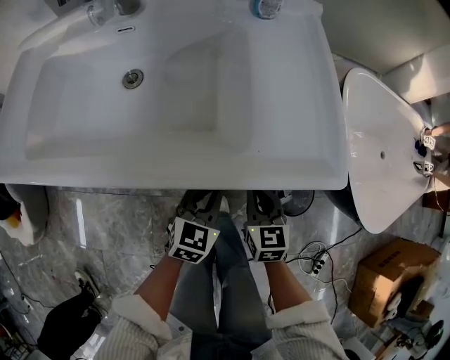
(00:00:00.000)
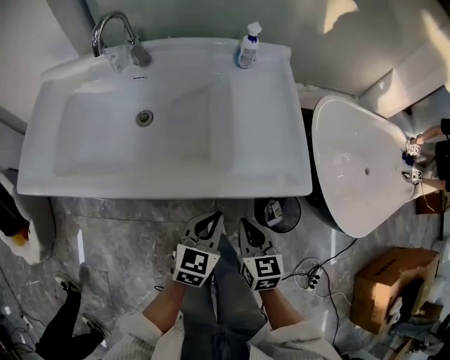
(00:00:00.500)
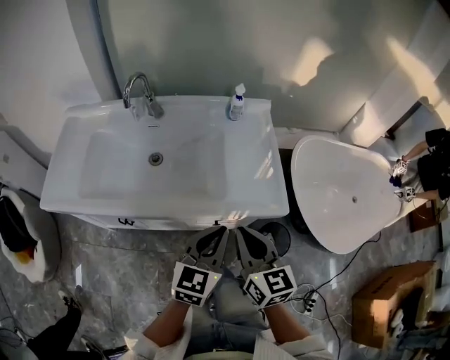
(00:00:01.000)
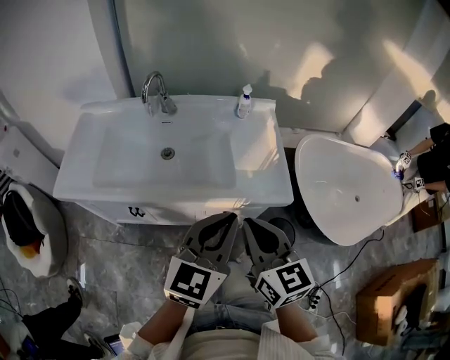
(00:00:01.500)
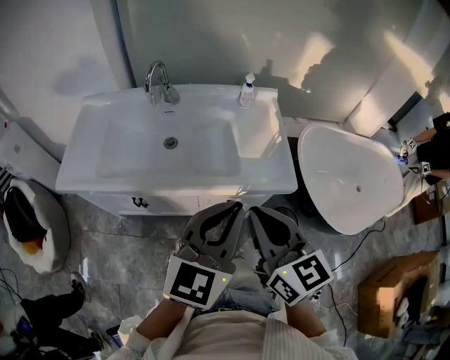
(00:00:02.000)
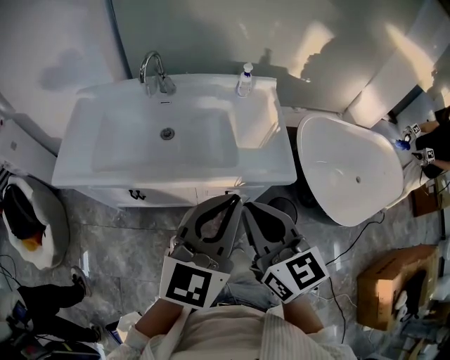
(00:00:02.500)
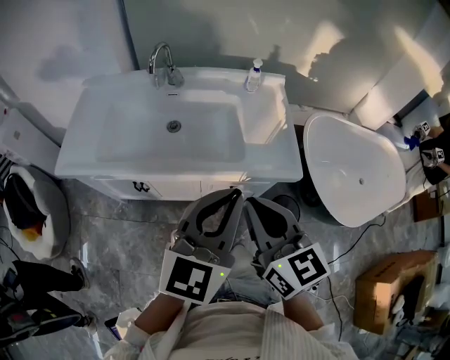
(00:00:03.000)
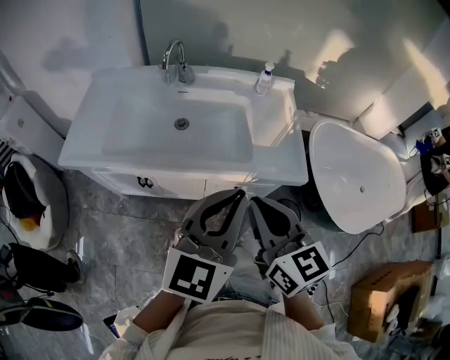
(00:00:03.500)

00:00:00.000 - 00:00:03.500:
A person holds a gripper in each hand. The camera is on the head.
00:00:00.000 - 00:00:02.000: The two grippers go about 40 cm upward. The right gripper turns by roughly 30 degrees. The left gripper turns by about 30 degrees.
00:00:02.000 - 00:00:03.500: The grippers make only small movements.

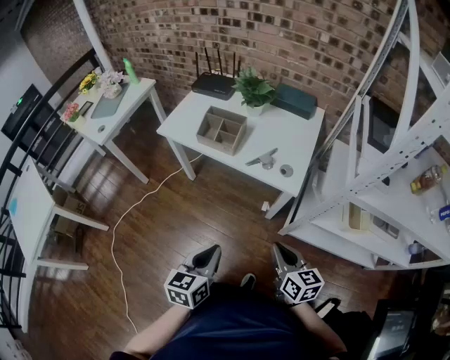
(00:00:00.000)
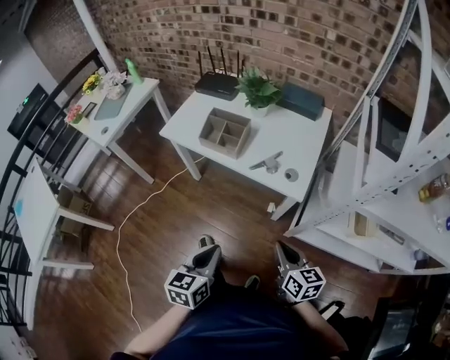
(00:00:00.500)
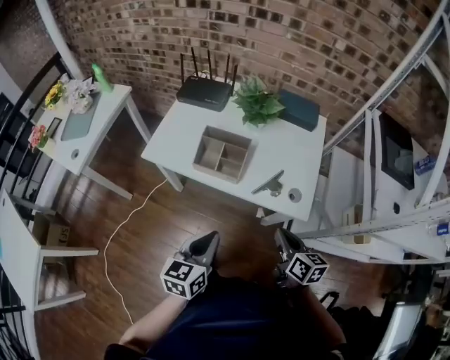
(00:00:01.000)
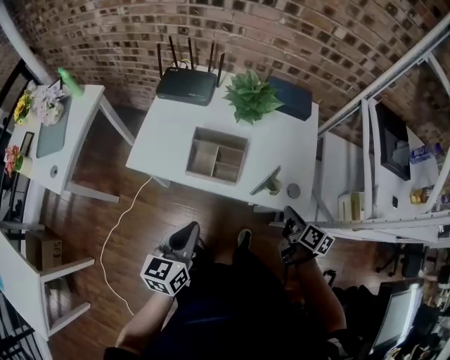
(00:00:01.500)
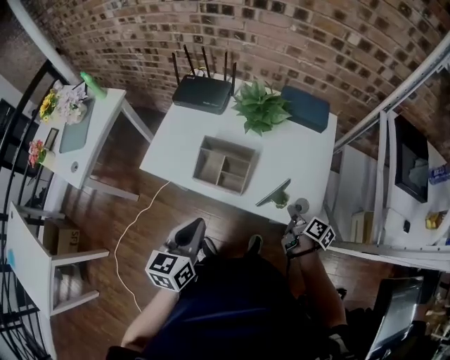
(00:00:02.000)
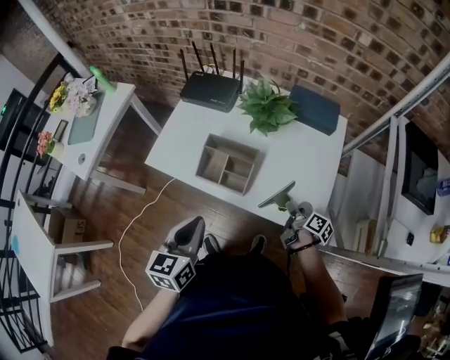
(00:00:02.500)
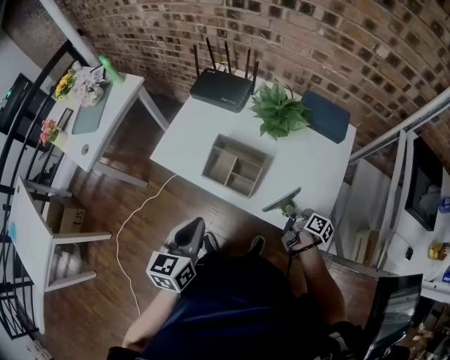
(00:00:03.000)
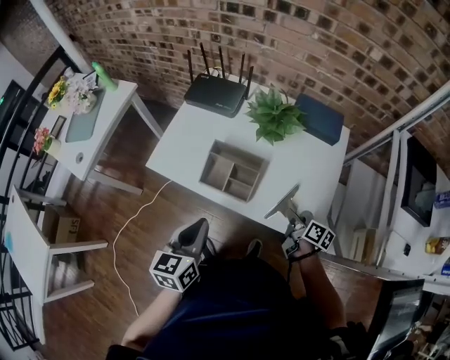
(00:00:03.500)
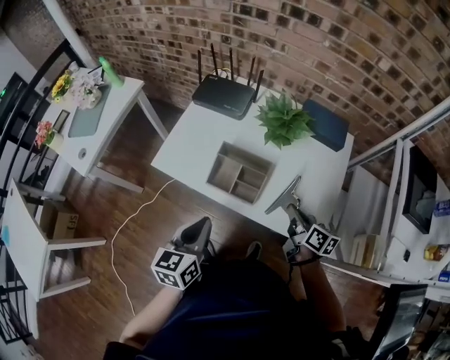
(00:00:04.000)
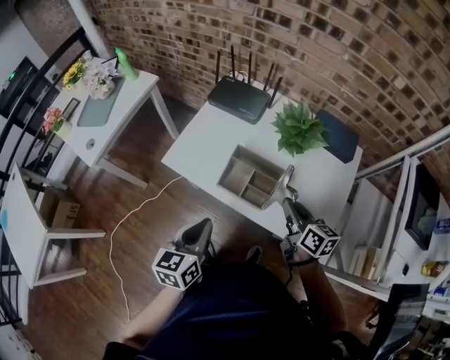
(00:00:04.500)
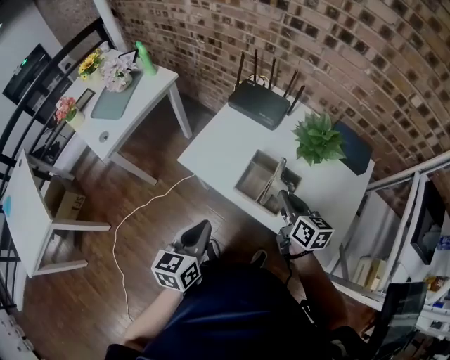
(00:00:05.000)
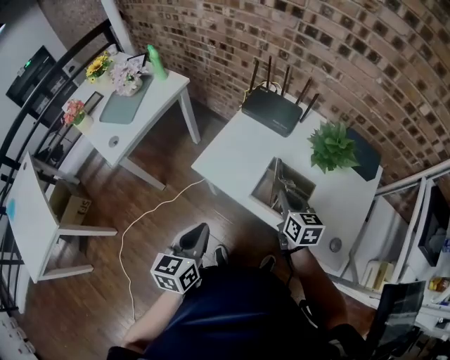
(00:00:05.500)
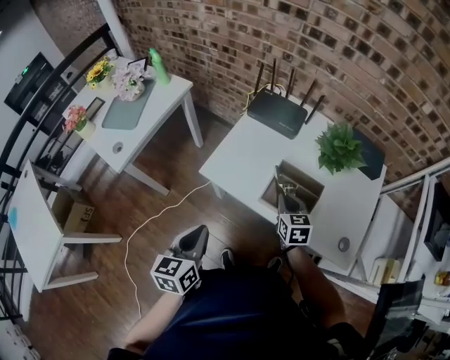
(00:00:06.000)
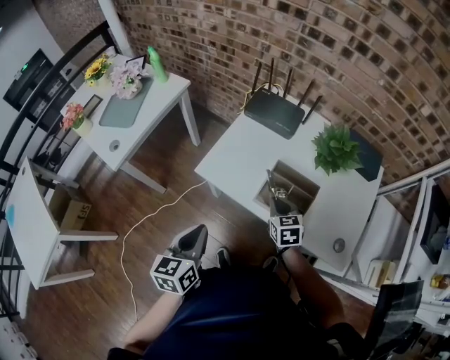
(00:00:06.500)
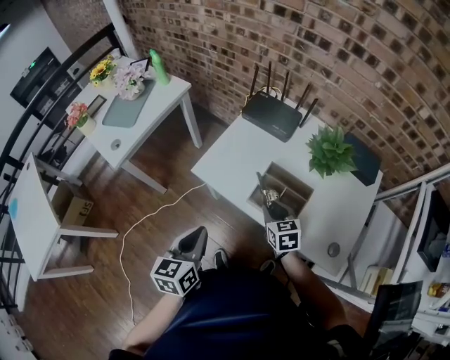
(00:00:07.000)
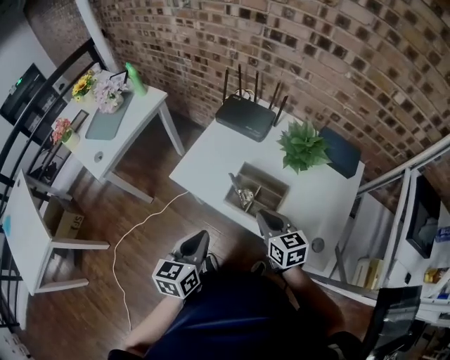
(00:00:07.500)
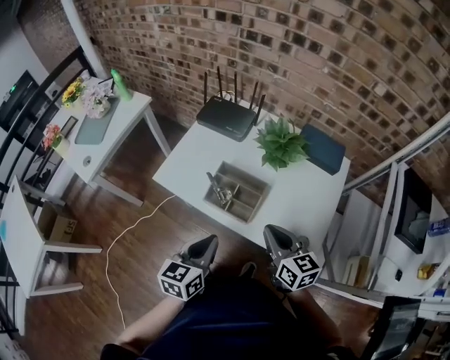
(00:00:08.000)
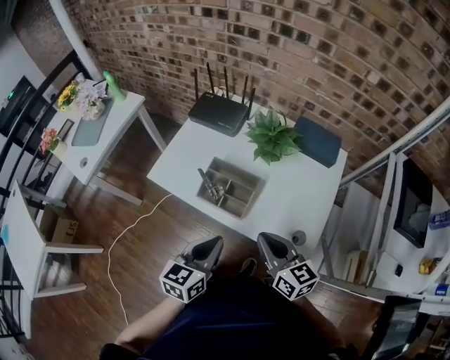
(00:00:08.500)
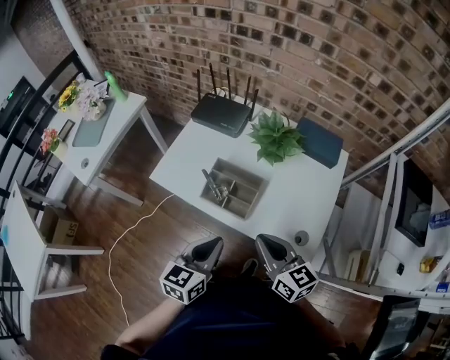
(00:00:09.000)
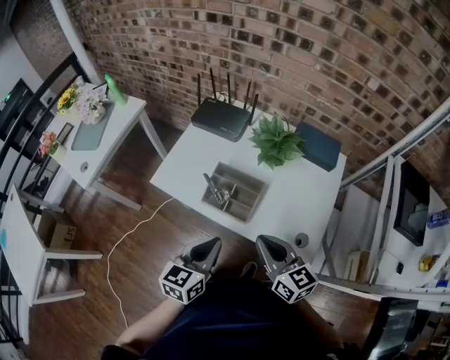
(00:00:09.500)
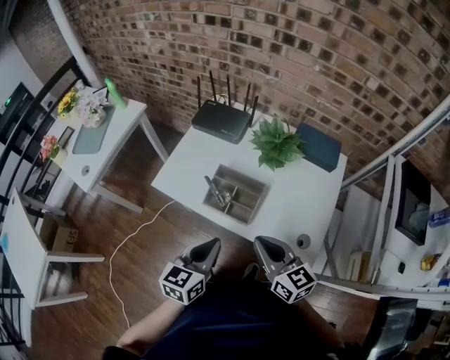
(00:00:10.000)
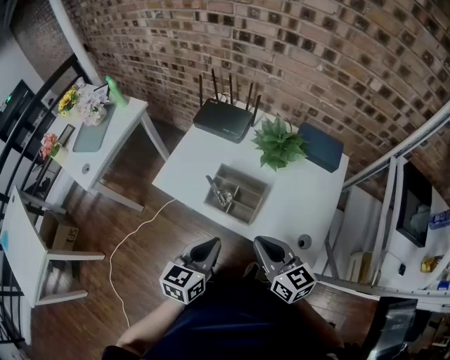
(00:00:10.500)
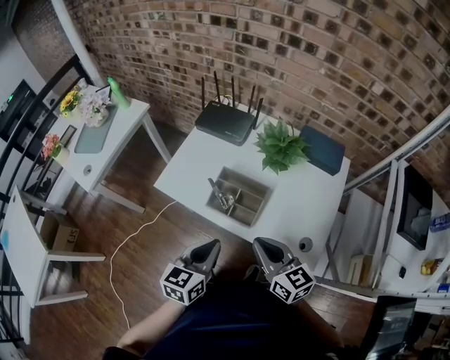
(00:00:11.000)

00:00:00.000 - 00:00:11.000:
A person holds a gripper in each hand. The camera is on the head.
00:00:00.000 - 00:00:02.000: The right gripper goes some 35 cm forward and downward, and rolls clockwise, seen from behind, by about 40 degrees, while the left gripper travels forward and to the left by approximately 35 cm.
00:00:02.000 - 00:00:03.500: The right gripper shifts by roughly 5 cm.
00:00:03.500 - 00:00:05.500: The left gripper goes roughly 15 cm to the left; the right gripper travels to the left, forward and upward by about 30 cm, and twists roughly 50 degrees counterclockwise, seen from behind.
00:00:05.500 - 00:00:07.500: The right gripper heads backward, covering roughly 5 cm, moves some 5 cm downward and comes back, and opens, then closes once more. Meanwhile the left gripper moves to the right, about 10 cm.
00:00:07.500 - 00:00:09.000: The right gripper heads backward, upward and to the right, covering some 15 cm, while the left gripper moves to the right, some 15 cm.
00:00:09.000 - 00:00:11.000: The grippers move only a little.

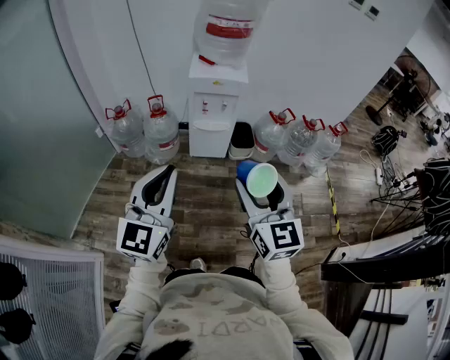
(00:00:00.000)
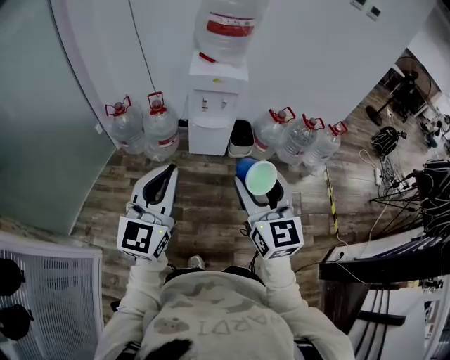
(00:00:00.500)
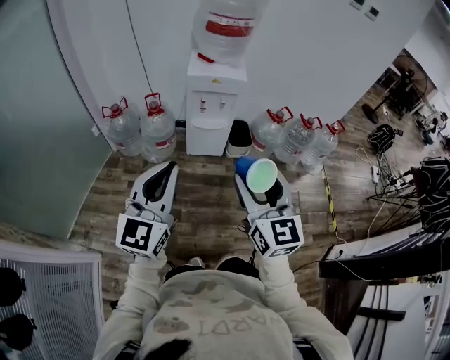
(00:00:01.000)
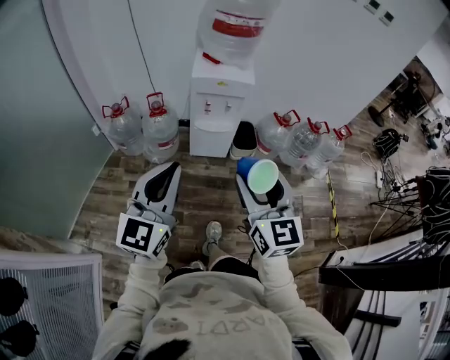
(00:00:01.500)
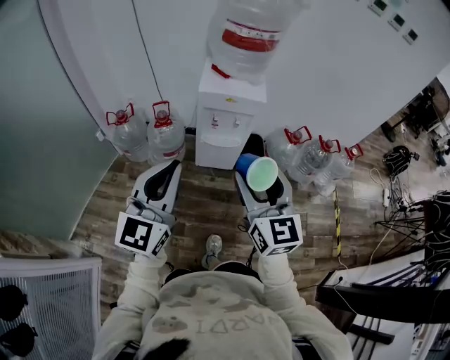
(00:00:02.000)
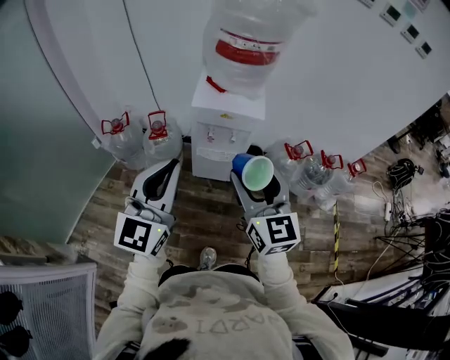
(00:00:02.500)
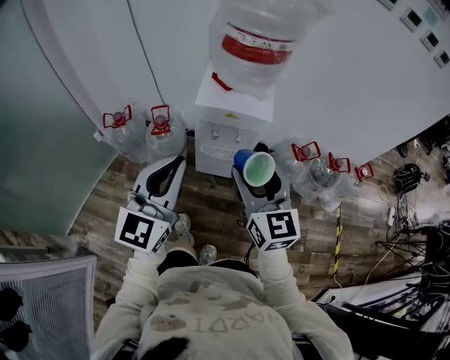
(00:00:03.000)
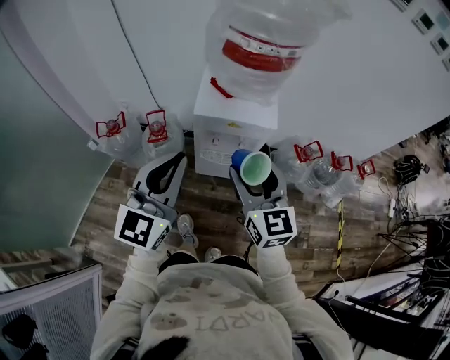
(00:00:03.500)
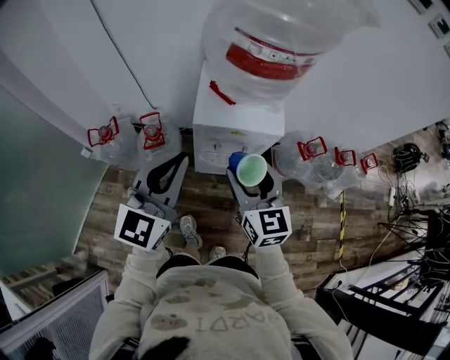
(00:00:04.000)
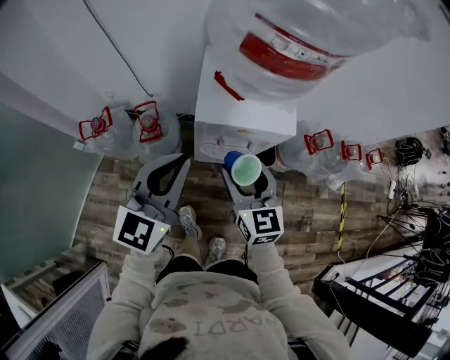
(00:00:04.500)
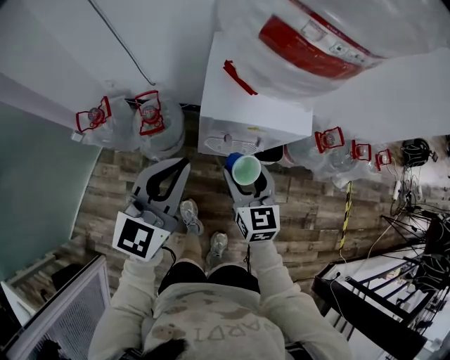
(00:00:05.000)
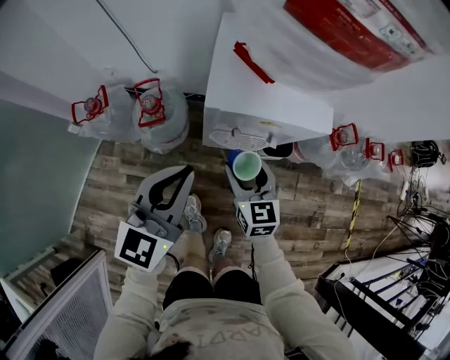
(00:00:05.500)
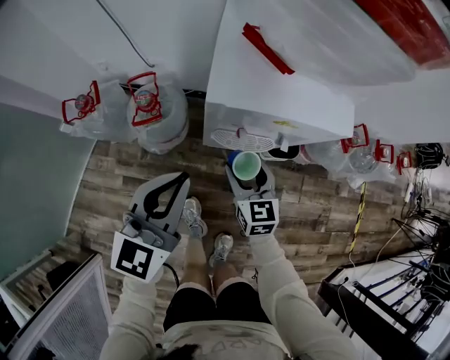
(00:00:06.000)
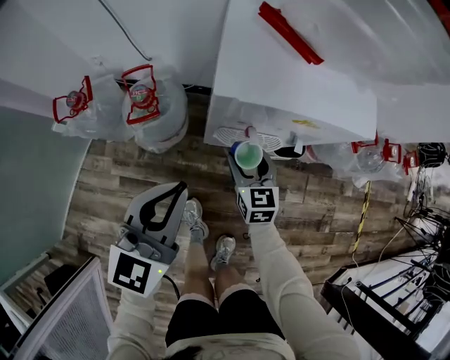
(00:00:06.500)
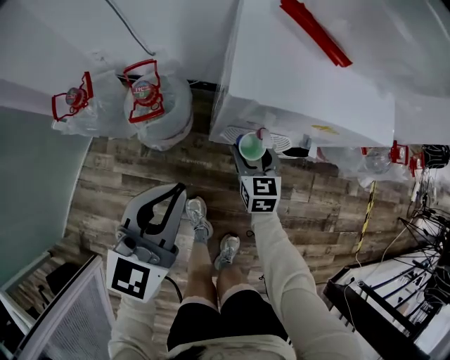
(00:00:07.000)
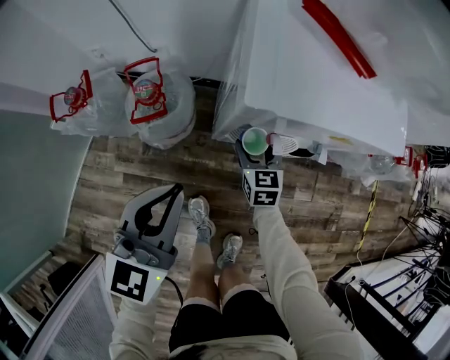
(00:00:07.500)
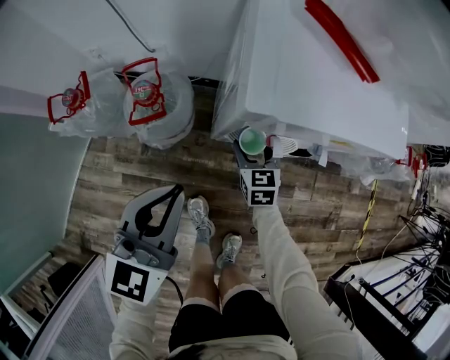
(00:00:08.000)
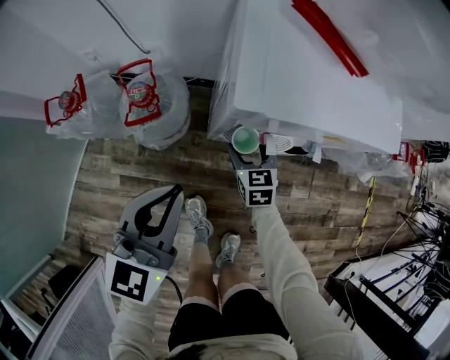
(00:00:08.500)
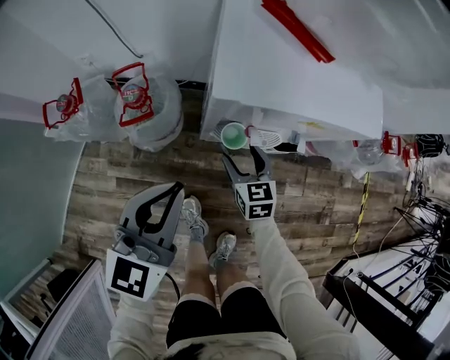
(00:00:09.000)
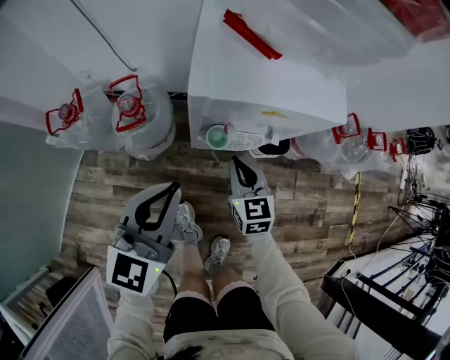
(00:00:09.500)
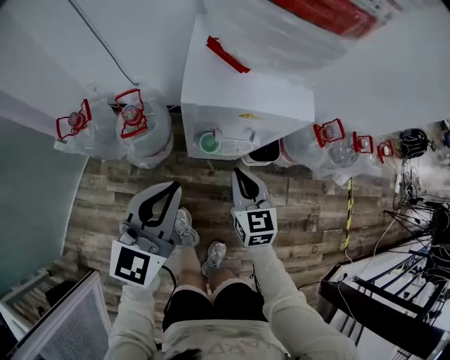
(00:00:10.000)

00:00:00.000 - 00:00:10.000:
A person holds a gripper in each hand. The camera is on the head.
00:00:00.000 - 00:00:02.000: The two grippers go about 20 cm forward.
00:00:02.000 - 00:00:04.000: The grippers both shift forward by approximately 30 cm.
00:00:04.000 - 00:00:06.000: Both grippers travel together downward, some 30 cm.
00:00:06.000 - 00:00:08.000: The left gripper shifts approximately 10 cm downward and to the left; the right gripper moves downward and forward, about 20 cm.
00:00:08.000 - 00:00:10.000: The left gripper is displaced upward, to the right and backward by approximately 15 cm; the right gripper is displaced upward and backward by some 25 cm, and closes its fingers.

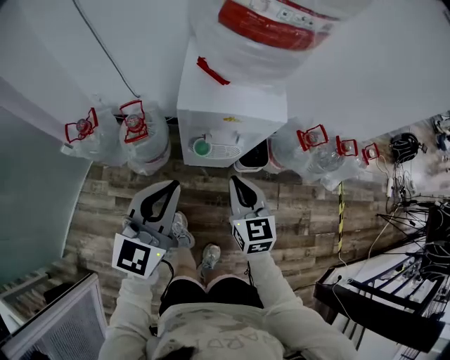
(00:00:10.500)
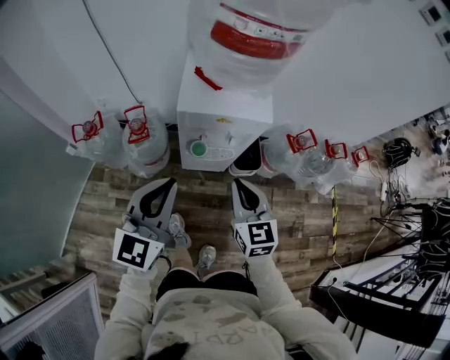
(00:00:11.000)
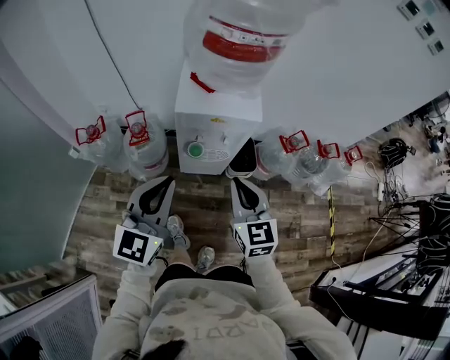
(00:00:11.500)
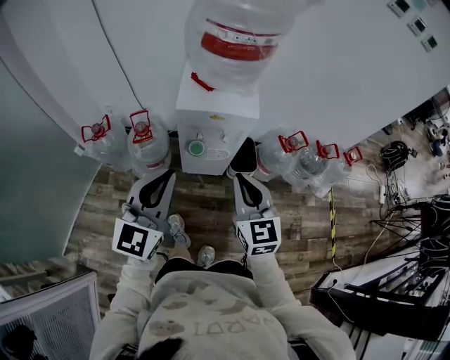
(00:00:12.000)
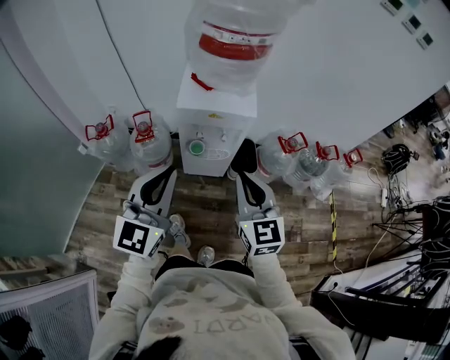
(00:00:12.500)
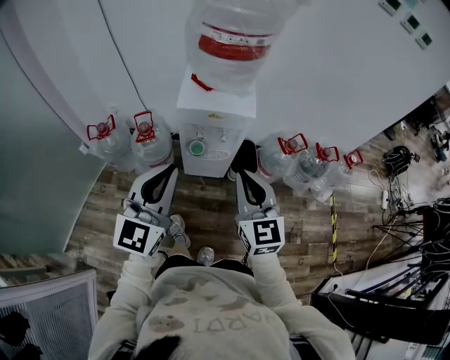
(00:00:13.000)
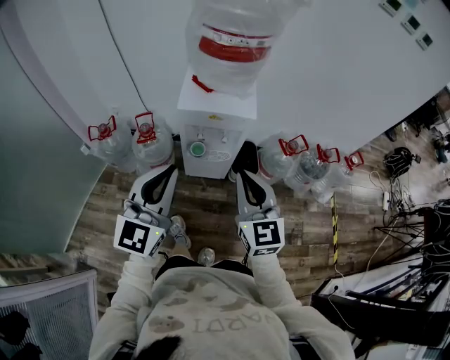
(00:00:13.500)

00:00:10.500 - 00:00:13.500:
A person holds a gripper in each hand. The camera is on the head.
00:00:10.500 - 00:00:12.000: Both grippers travel together upward and backward, roughly 20 cm.
00:00:12.000 - 00:00:13.500: The right gripper moves approximately 5 cm.
